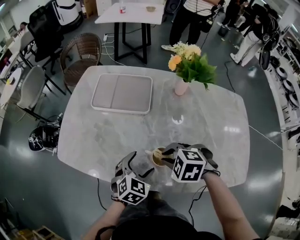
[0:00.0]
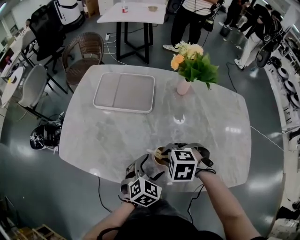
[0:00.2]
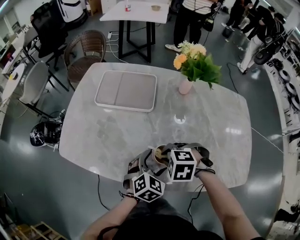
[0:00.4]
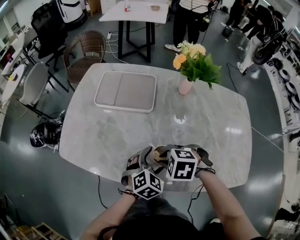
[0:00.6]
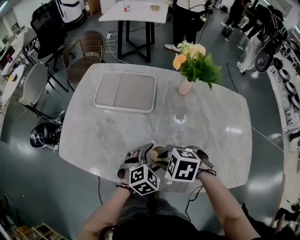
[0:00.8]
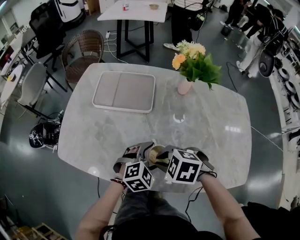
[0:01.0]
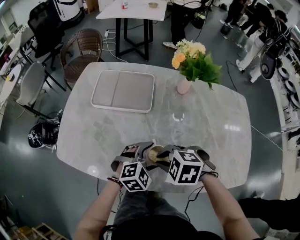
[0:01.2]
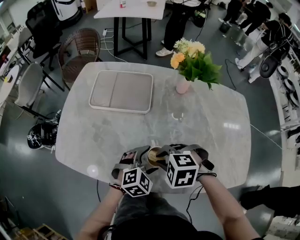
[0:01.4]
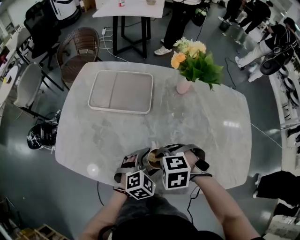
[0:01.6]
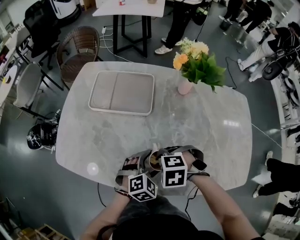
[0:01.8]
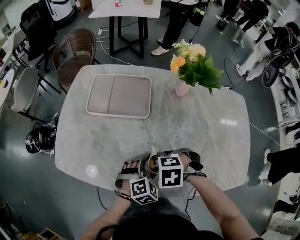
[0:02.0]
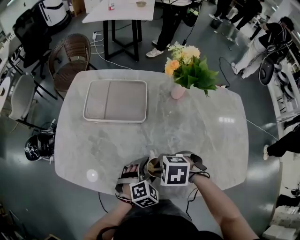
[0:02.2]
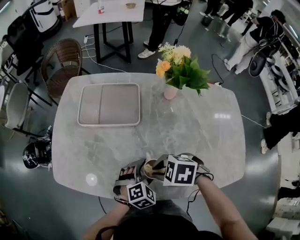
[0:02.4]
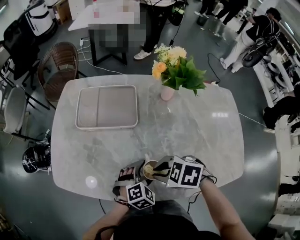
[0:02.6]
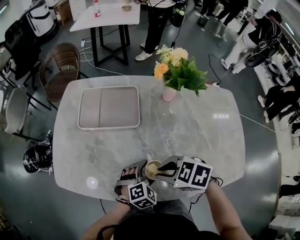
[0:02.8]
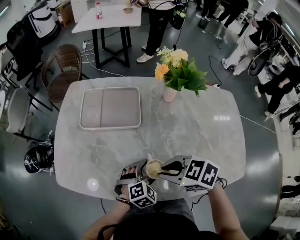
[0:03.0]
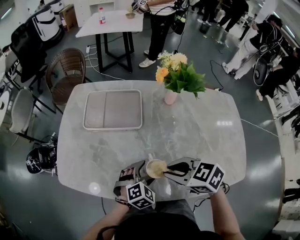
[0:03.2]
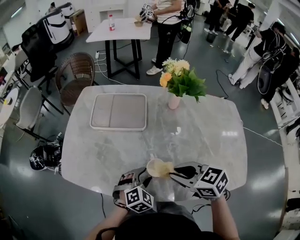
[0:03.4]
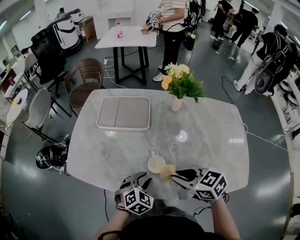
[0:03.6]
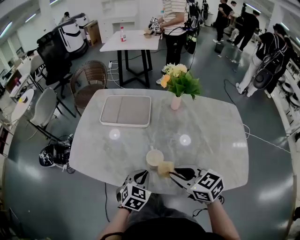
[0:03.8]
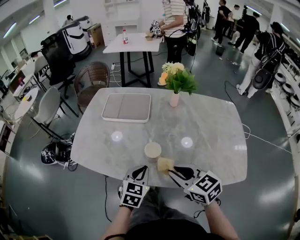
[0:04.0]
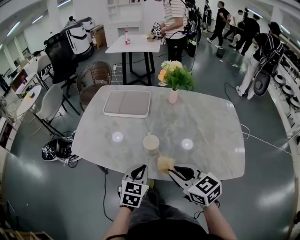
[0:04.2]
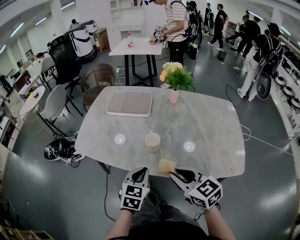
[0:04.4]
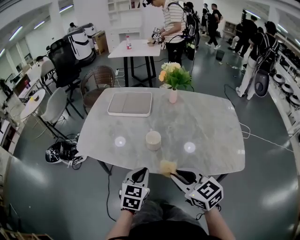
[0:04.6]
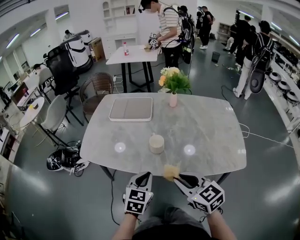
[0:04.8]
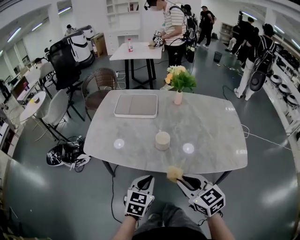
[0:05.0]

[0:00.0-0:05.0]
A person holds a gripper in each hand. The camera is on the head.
0:00.0 to 0:01.6: The left gripper moves roughly 5 cm, and swivels roughly 20 degrees.
0:01.6 to 0:03.4: The right gripper shifts about 10 cm upward, and tilts its fingers approximately 40 degrees upward, while the left gripper closes up.
0:03.4 to 0:05.0: The left gripper is displaced backward and upward by approximately 20 cm, turns by roughly 40 degrees, and closes its fingers. The right gripper shifts approximately 20 cm backward, and changes its angle by about 20 degrees.

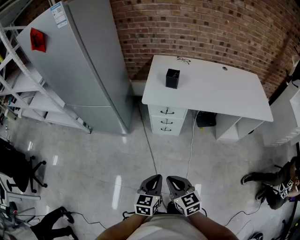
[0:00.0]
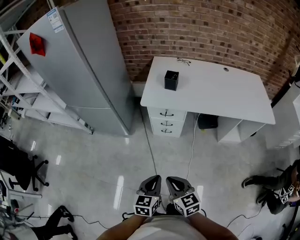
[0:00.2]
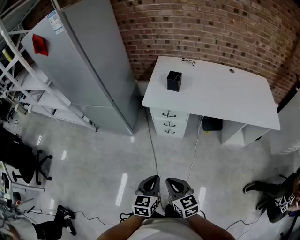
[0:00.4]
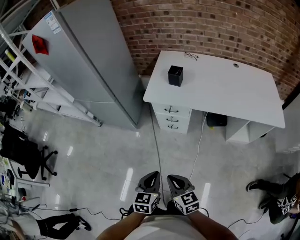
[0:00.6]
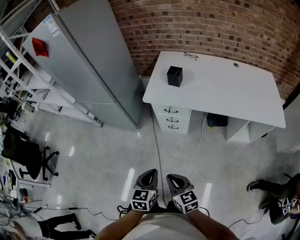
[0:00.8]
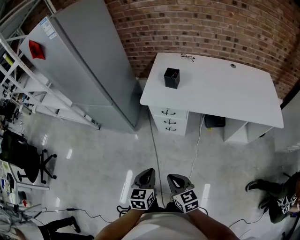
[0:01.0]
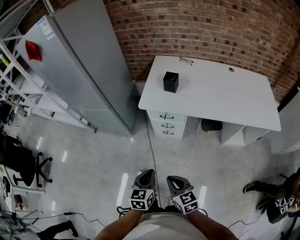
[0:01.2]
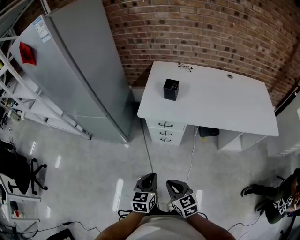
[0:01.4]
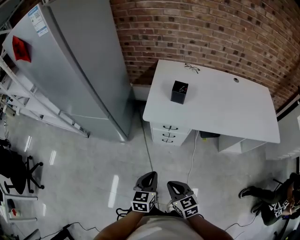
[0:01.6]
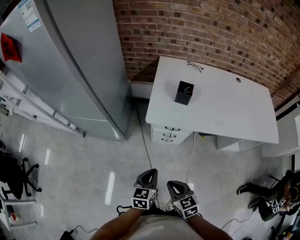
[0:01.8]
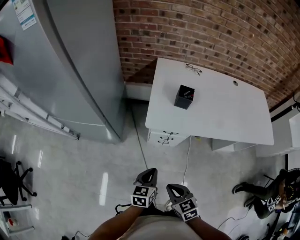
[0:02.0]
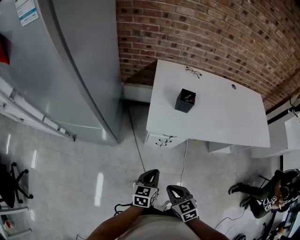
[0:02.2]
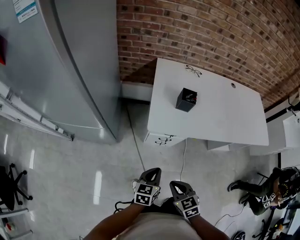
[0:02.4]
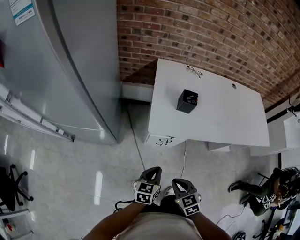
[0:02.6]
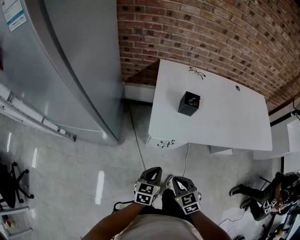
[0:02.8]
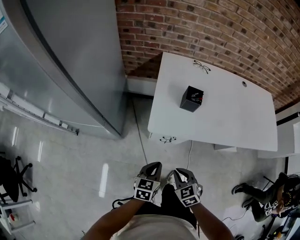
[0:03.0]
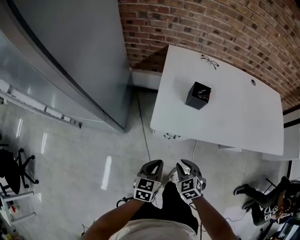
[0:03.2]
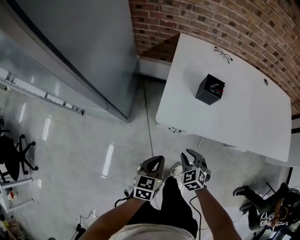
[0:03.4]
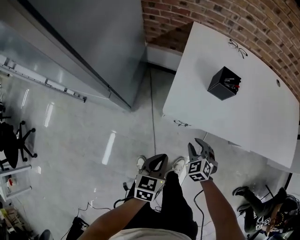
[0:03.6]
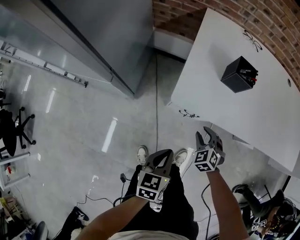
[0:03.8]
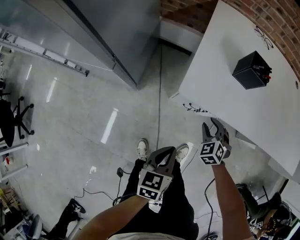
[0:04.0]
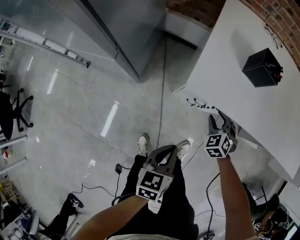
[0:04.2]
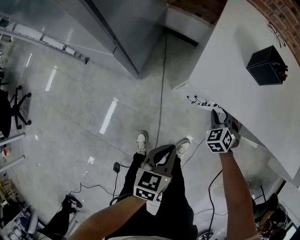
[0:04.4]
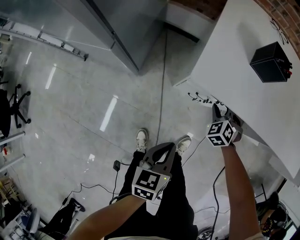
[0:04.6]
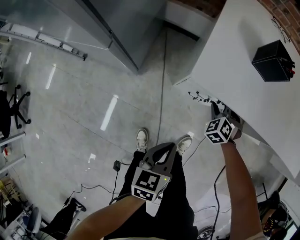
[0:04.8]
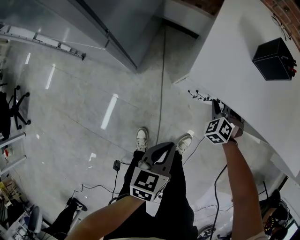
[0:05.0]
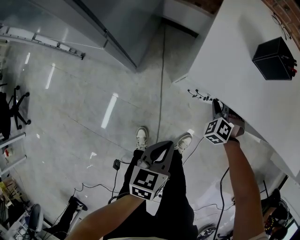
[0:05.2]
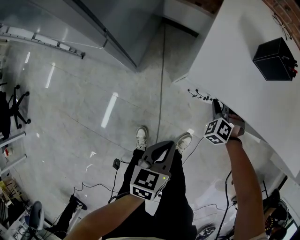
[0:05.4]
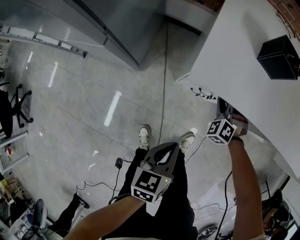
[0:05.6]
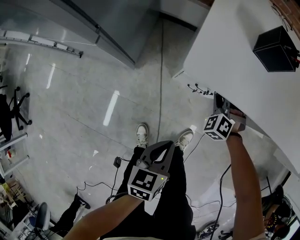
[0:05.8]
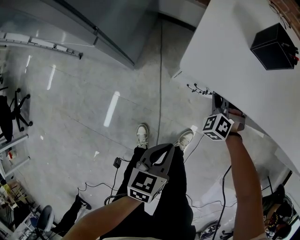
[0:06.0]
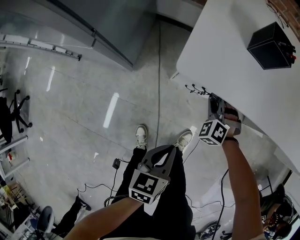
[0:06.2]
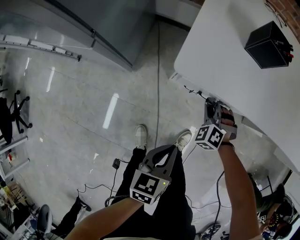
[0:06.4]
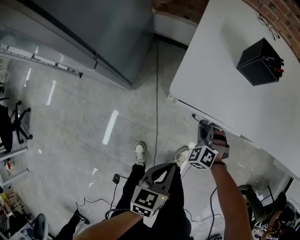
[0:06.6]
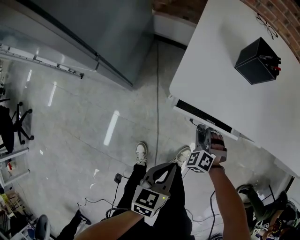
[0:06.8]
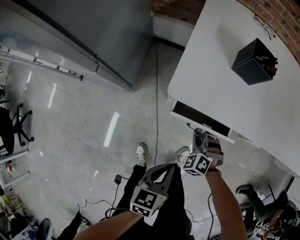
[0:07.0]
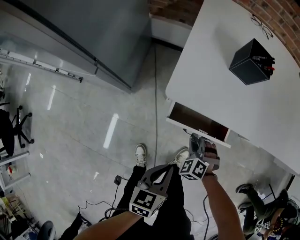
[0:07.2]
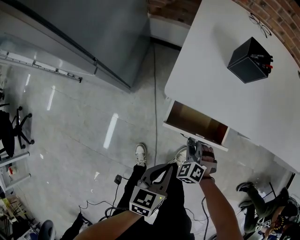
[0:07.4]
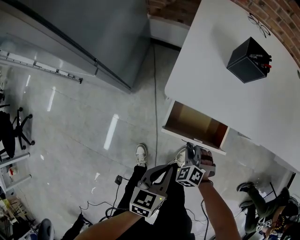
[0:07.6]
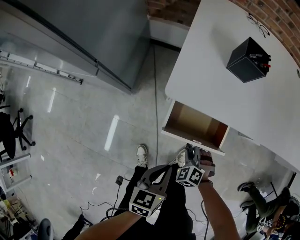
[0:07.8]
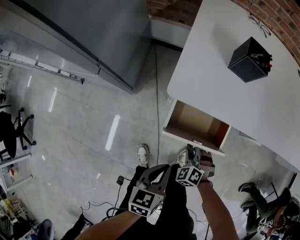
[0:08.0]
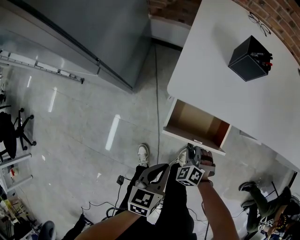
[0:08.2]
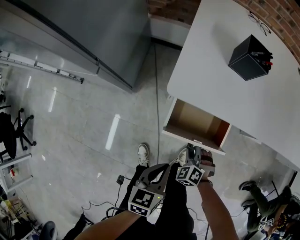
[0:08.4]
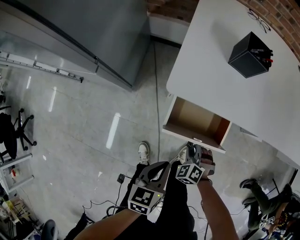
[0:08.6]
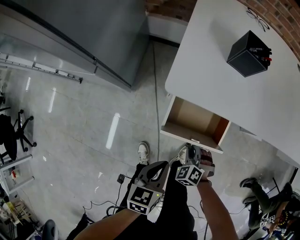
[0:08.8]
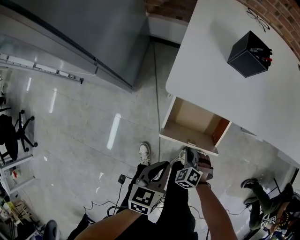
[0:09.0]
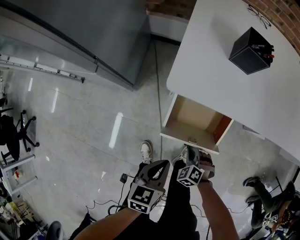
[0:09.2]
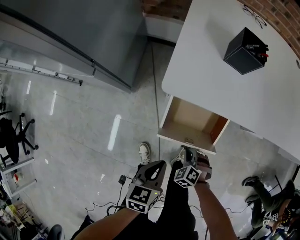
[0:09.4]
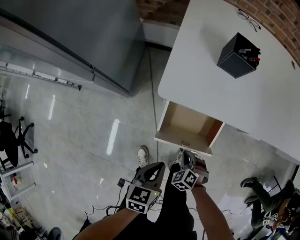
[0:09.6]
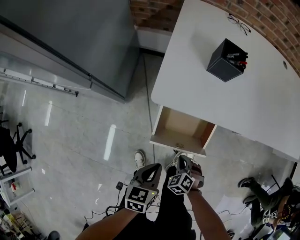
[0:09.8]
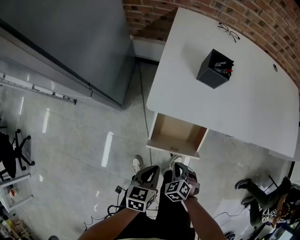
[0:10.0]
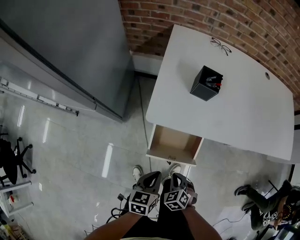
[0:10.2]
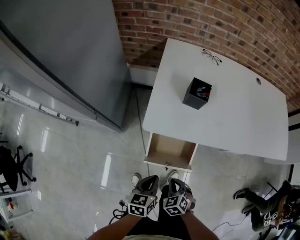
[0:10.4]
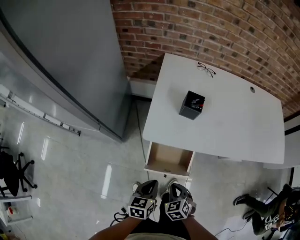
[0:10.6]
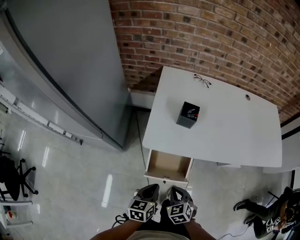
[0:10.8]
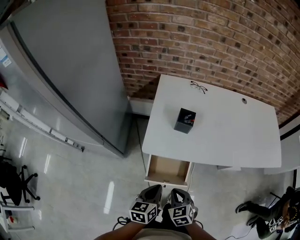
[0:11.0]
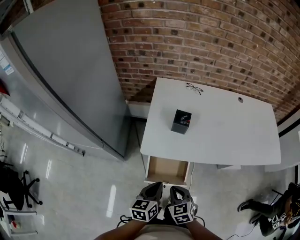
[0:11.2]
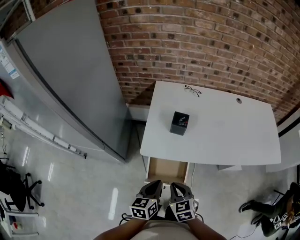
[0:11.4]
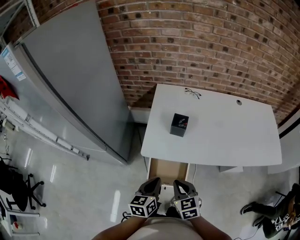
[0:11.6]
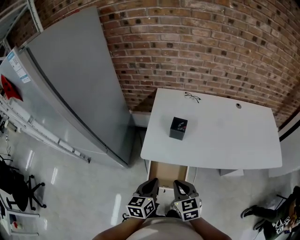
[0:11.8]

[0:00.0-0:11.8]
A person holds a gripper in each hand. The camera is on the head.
0:00.0 to 0:01.4: The two grippers go about 10 cm forward and to the right.
0:01.4 to 0:03.0: Both grippers travel together forward, some 20 cm. The right gripper changes its angle by about 30 degrees.
0:03.0 to 0:04.4: The right gripper travels downward and forward by about 30 cm, turns by approximately 30 degrees, and opens up; the left gripper is displaced downward by some 15 cm, and turns by approximately 20 degrees.
0:04.4 to 0:06.0: The right gripper closes up.
0:06.0 to 0:07.4: The right gripper is displaced backward by roughly 15 cm.
0:07.4 to 0:08.8: The grippers move only a little.
0:08.8 to 0:10.4: The left gripper shifts approximately 5 cm upward, while the right gripper goes about 15 cm upward, and rotates approximately 30 degrees.
0:10.4 to 0:11.8: The two grippers go some 20 cm upward. The right gripper changes its angle by roughly 40 degrees.

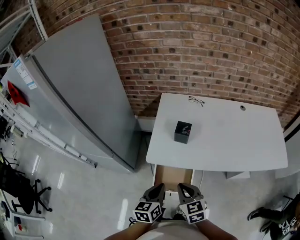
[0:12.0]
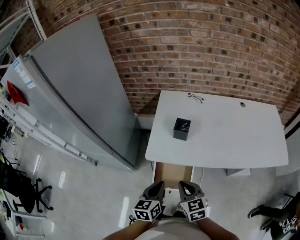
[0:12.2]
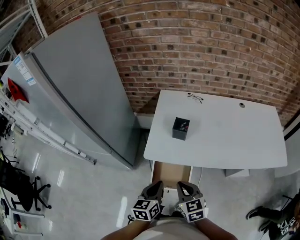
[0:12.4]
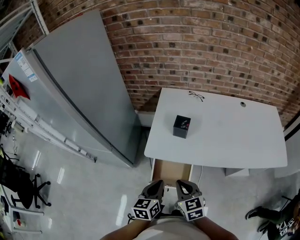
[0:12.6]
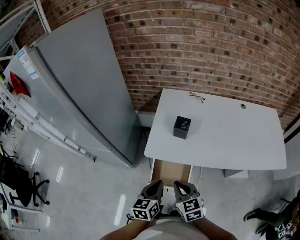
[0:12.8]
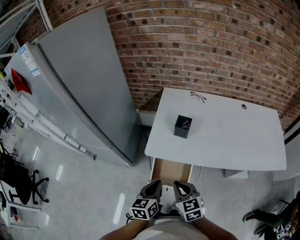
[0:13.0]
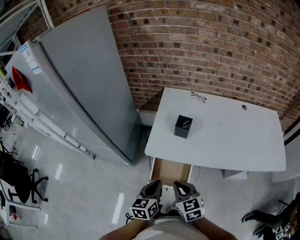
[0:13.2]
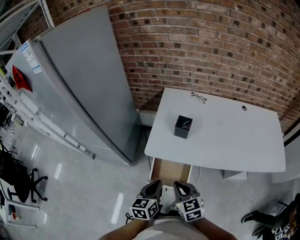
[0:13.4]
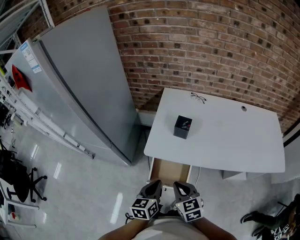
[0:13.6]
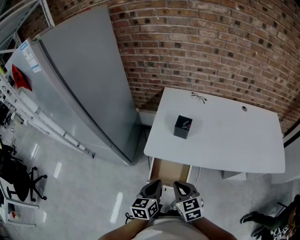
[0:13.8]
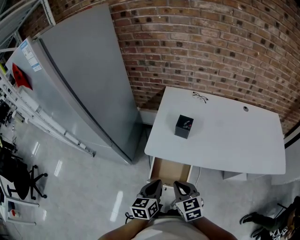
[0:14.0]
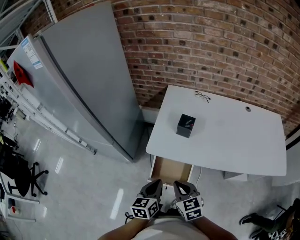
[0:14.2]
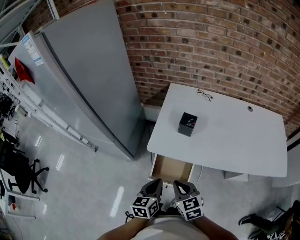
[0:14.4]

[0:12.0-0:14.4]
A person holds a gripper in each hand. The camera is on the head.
0:12.0 to 0:14.4: The grippers stay close to where they were, moving slightly.

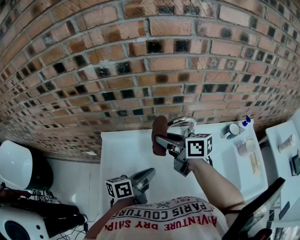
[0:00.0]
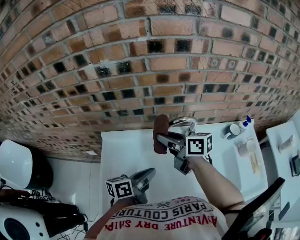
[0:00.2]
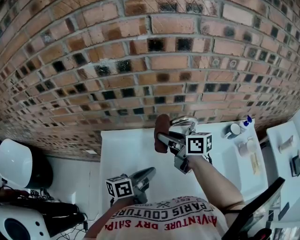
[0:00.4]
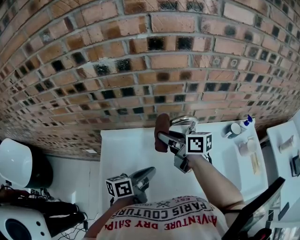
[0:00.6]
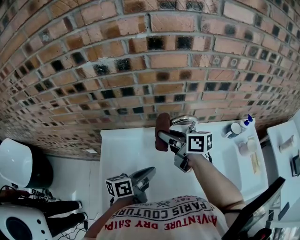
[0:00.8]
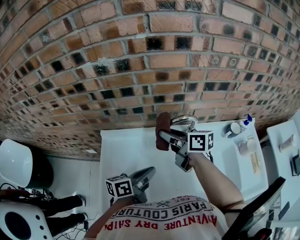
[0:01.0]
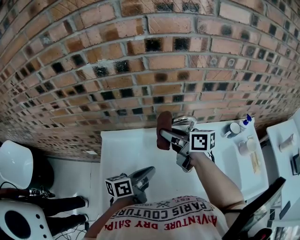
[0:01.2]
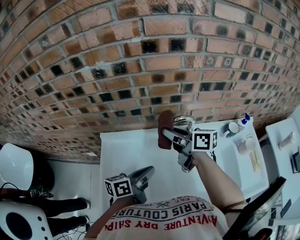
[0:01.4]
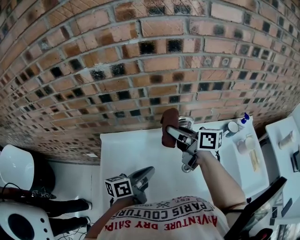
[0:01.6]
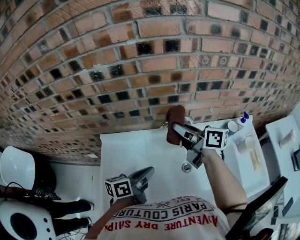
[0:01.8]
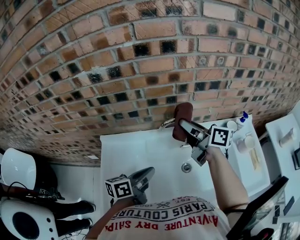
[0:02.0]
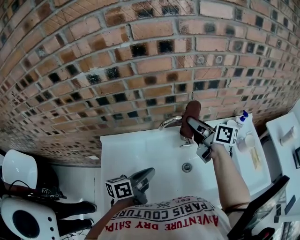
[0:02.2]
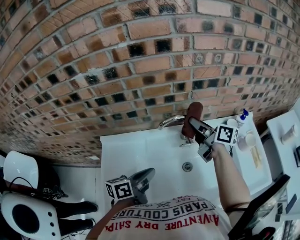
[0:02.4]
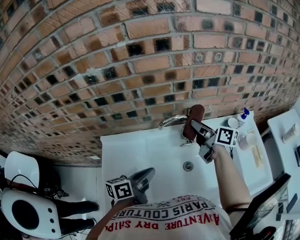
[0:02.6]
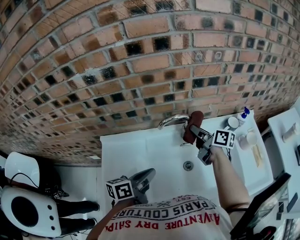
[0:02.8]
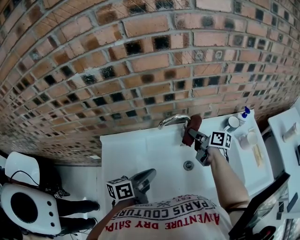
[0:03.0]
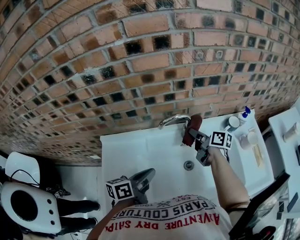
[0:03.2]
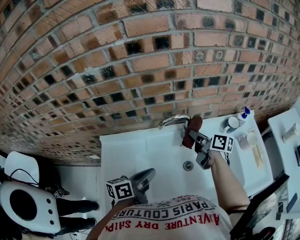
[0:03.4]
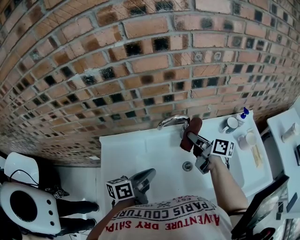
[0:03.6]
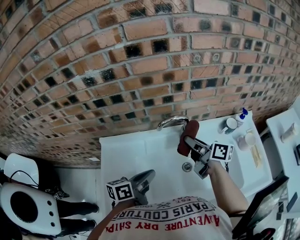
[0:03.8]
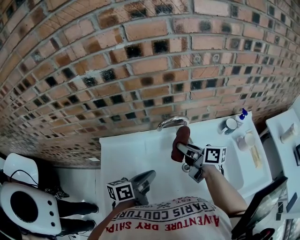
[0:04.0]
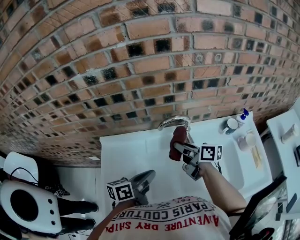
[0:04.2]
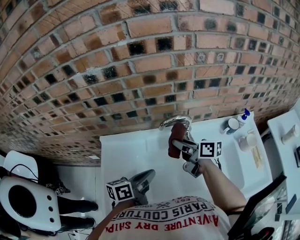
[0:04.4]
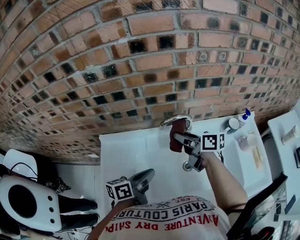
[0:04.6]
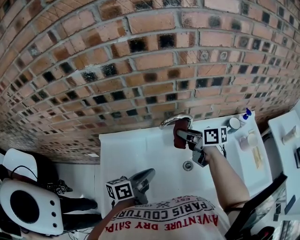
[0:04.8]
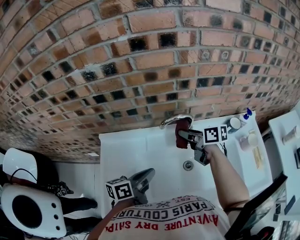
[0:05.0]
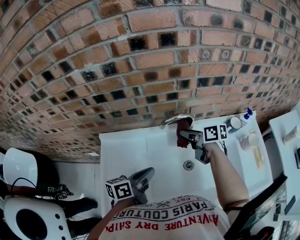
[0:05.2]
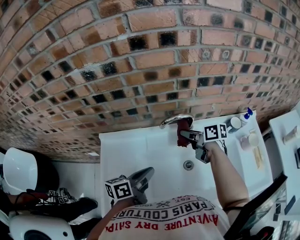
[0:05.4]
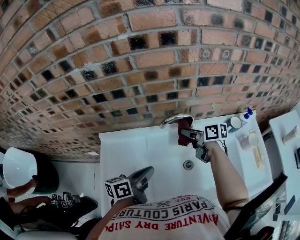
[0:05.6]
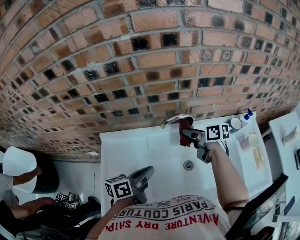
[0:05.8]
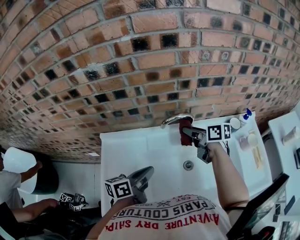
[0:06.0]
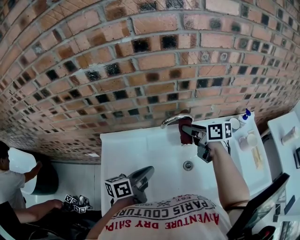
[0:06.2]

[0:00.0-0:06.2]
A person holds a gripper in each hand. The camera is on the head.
0:00.0 to 0:01.6: The right gripper moves to the right, roughly 5 cm.
0:01.6 to 0:03.2: The right gripper travels downward and to the right by some 20 cm, and rotates about 20 degrees.
0:03.2 to 0:04.6: The right gripper travels to the left and upward by about 10 cm.
